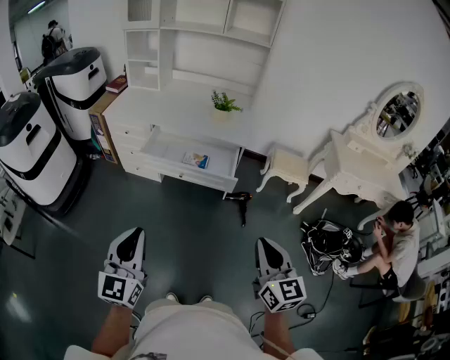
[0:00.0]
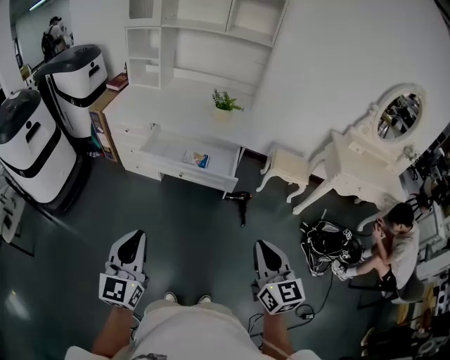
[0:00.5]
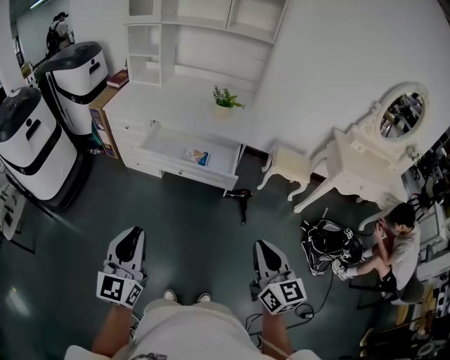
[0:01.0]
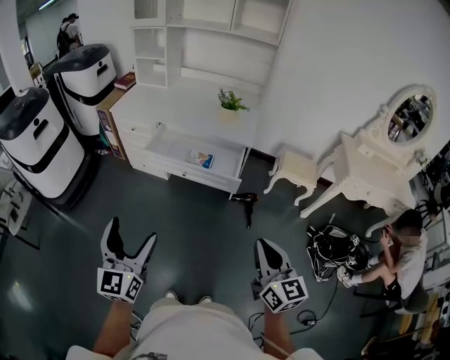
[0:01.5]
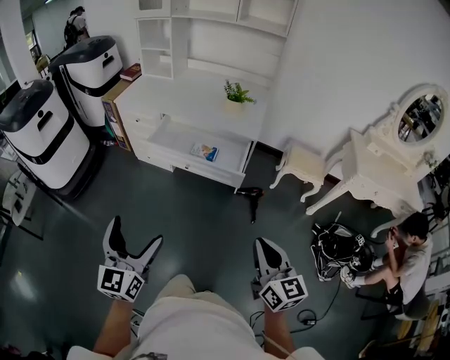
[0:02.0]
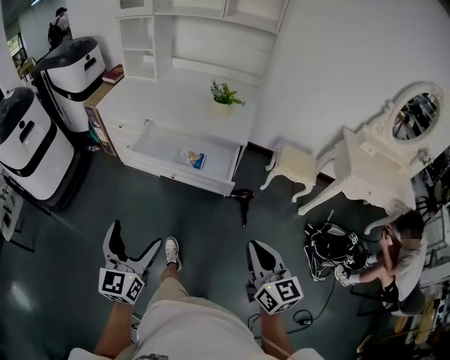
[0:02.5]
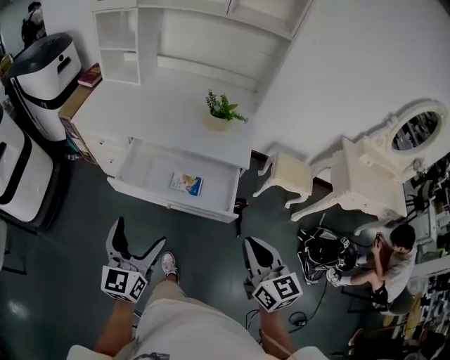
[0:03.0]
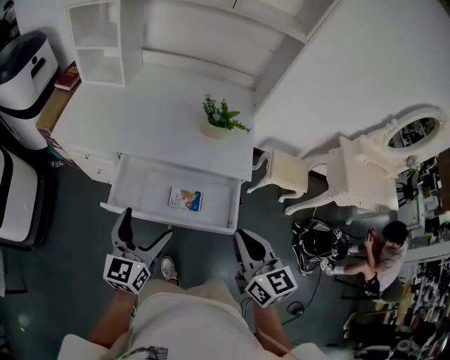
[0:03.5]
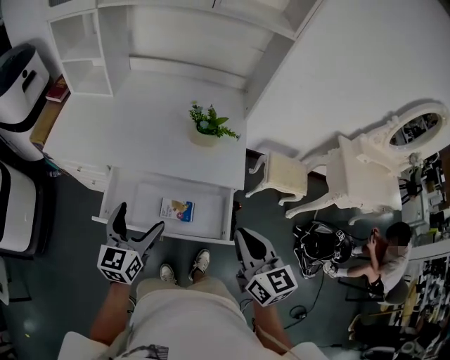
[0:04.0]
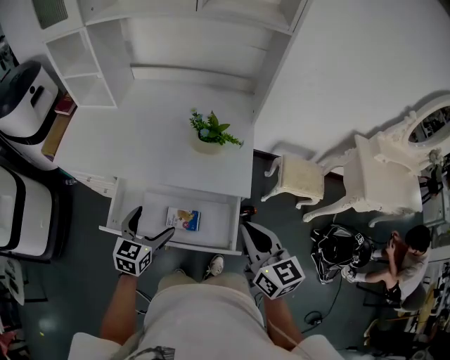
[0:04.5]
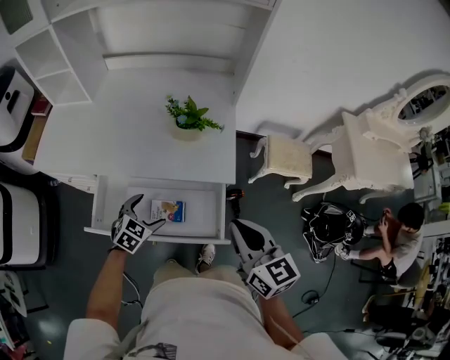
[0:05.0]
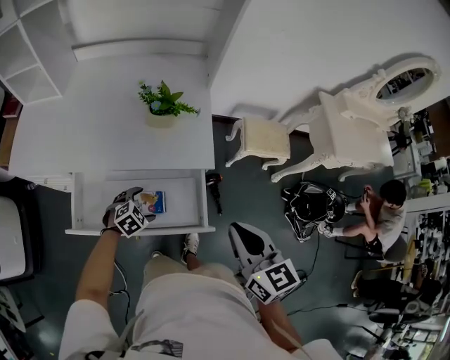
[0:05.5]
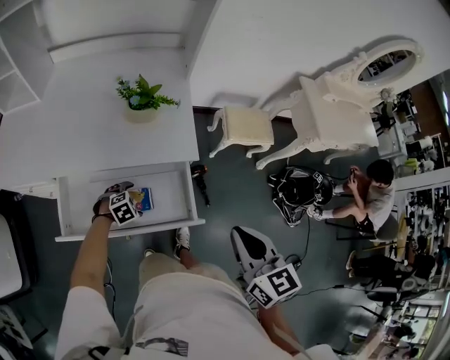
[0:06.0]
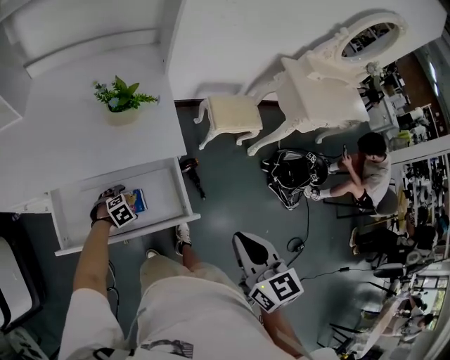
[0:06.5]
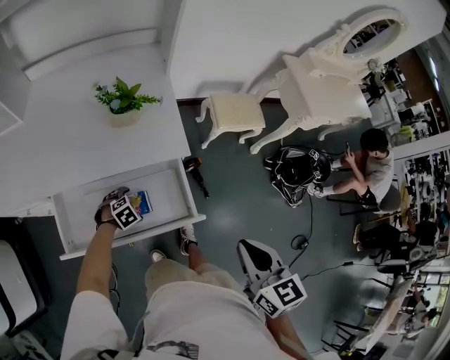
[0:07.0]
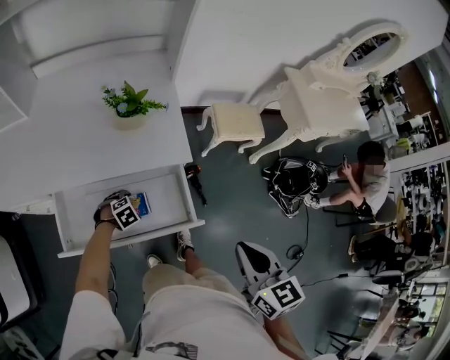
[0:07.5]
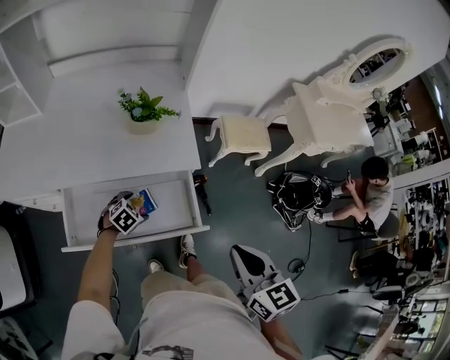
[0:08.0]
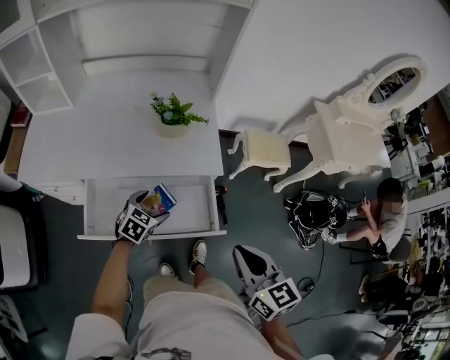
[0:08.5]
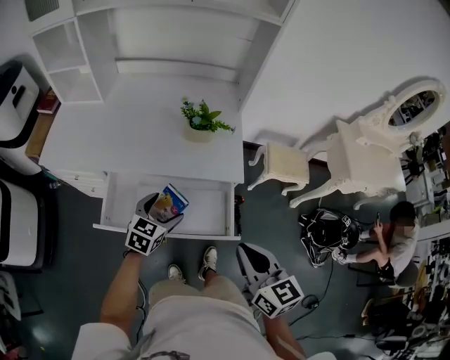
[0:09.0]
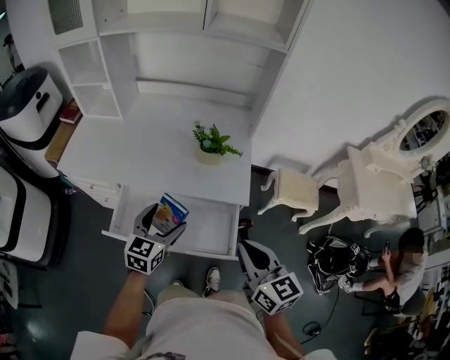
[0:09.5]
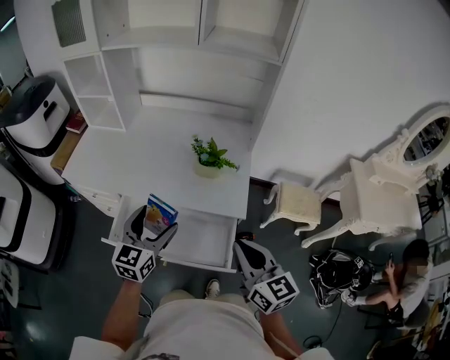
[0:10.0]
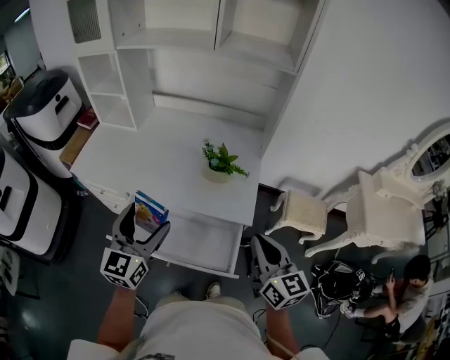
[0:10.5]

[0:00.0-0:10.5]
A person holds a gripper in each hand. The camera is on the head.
0.0 to 2.0 s: The left gripper opens. The right gripper shifts by approximately 5 cm.
2.0 to 4.0 s: The two grippers travel together, forward, some 50 cm. The left gripper changes its angle by about 20 degrees.
4.0 to 6.5 s: The left gripper shifts about 35 cm downward, and points its fingers approximately 60 degrees further downward. The right gripper changes place by approximately 15 cm, and swivels approximately 20 degrees.
6.5 to 8.5 s: The left gripper travels upward by roughly 15 cm, and changes its angle by about 40 degrees. The right gripper moves approximately 5 cm.
8.5 to 10.5 s: The left gripper heads upward, covering approximately 30 cm, and tips its fingers upward by about 40 degrees. Meanwhile the right gripper goes approximately 15 cm forward and upward.

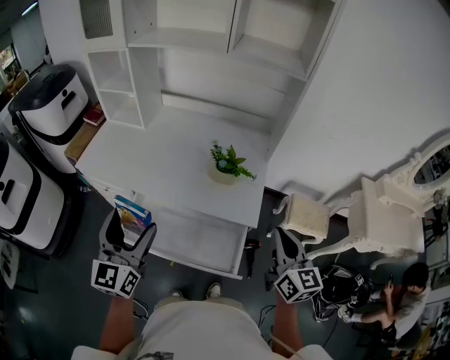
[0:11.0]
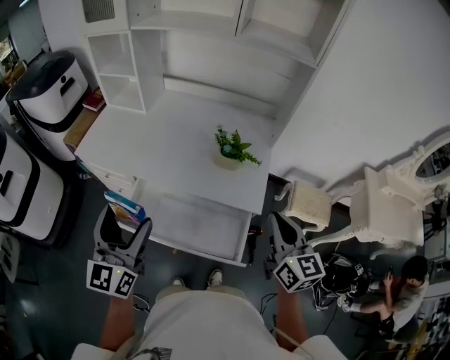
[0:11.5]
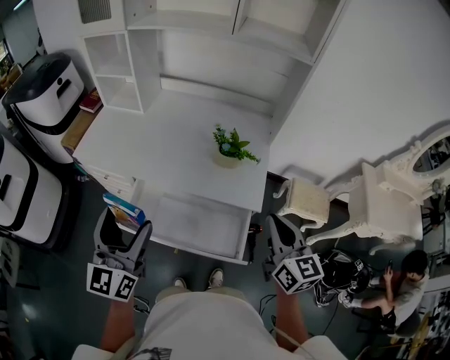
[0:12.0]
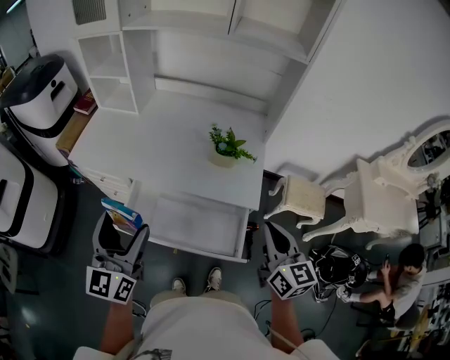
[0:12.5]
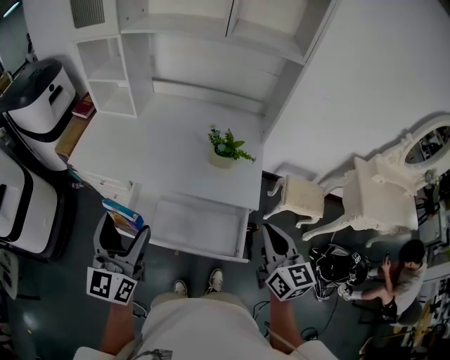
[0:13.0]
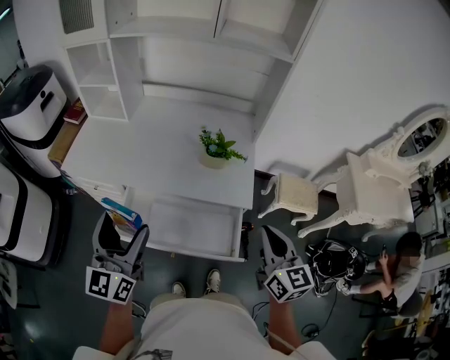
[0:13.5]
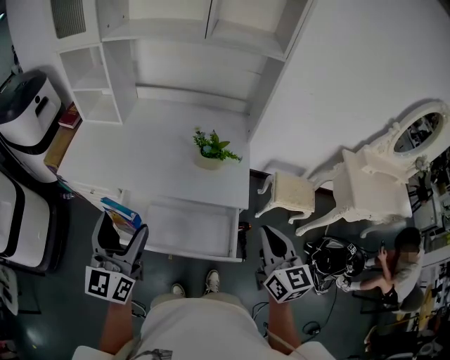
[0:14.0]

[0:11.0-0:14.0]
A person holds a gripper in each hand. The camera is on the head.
11.0 to 12.5 s: The right gripper heads to the left, covering approximately 5 cm.
12.5 to 14.0 s: The grippers make only small movements.

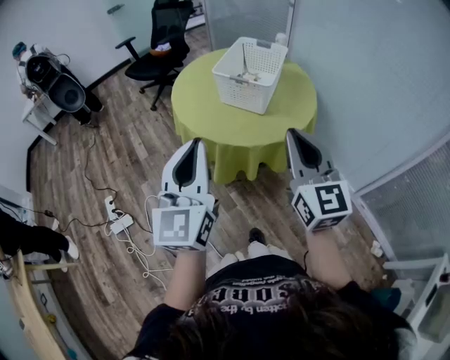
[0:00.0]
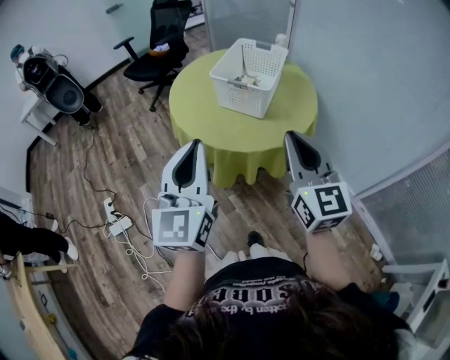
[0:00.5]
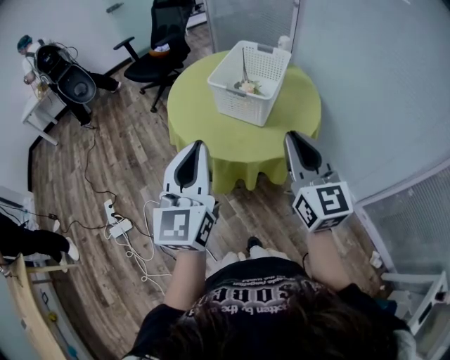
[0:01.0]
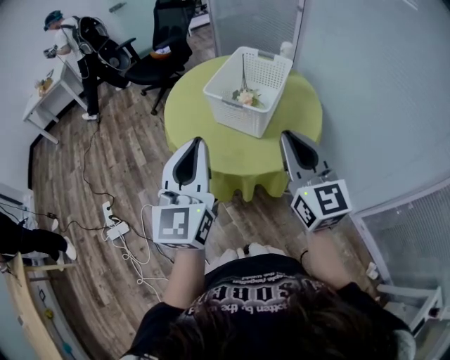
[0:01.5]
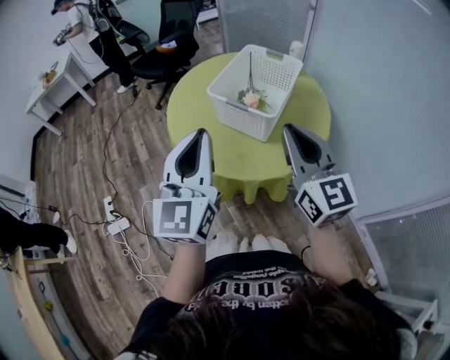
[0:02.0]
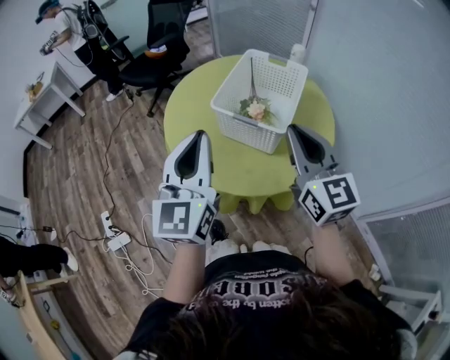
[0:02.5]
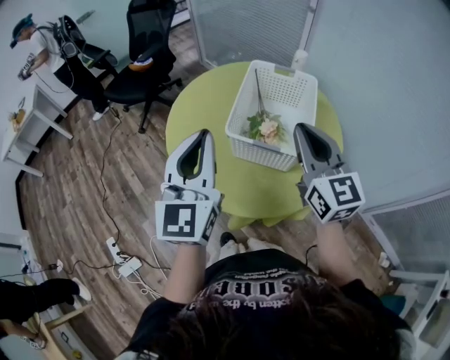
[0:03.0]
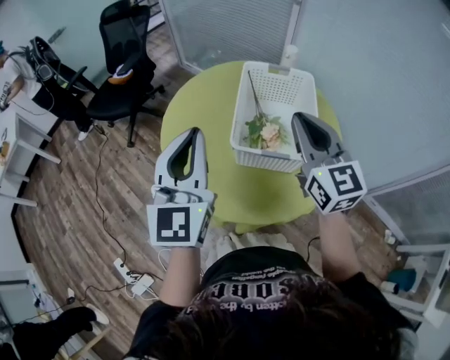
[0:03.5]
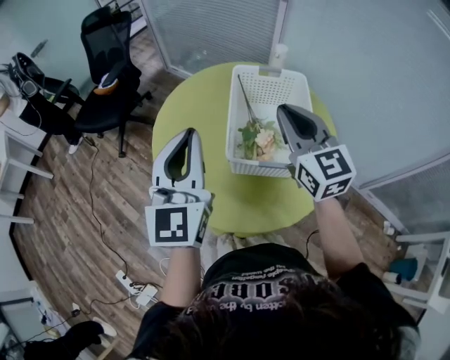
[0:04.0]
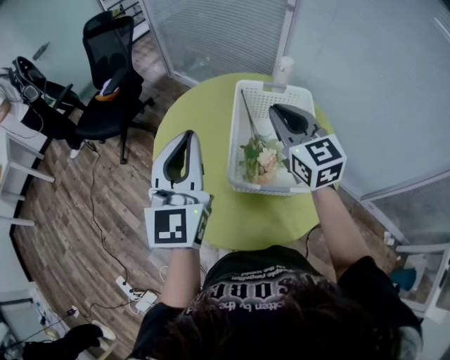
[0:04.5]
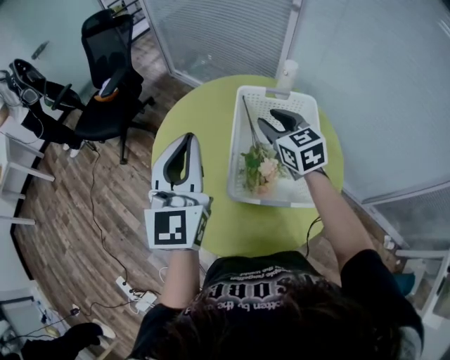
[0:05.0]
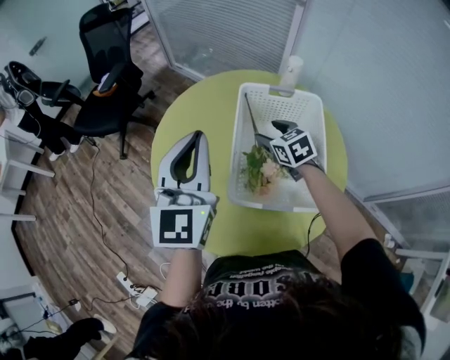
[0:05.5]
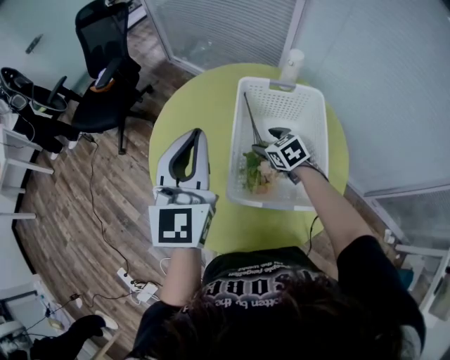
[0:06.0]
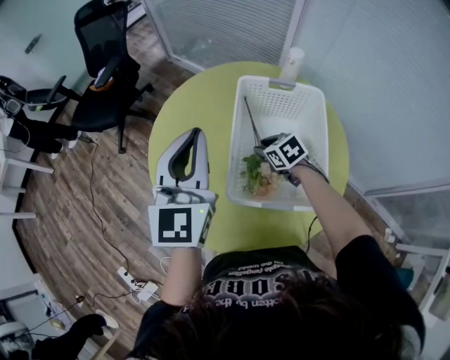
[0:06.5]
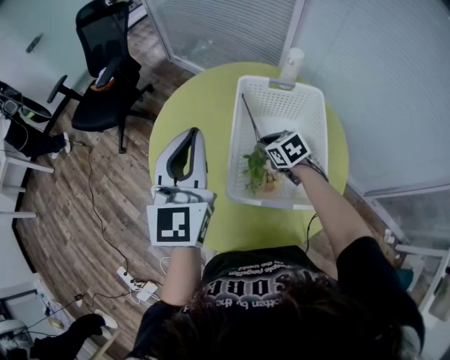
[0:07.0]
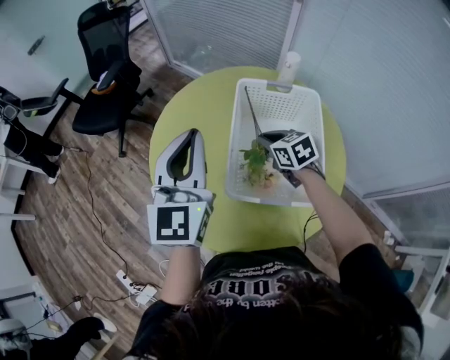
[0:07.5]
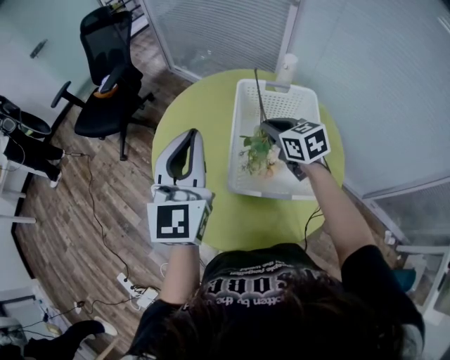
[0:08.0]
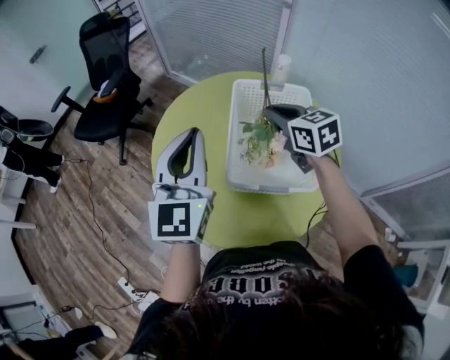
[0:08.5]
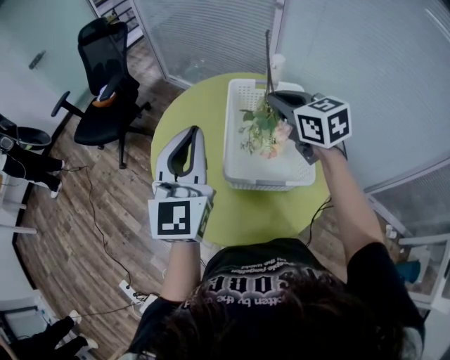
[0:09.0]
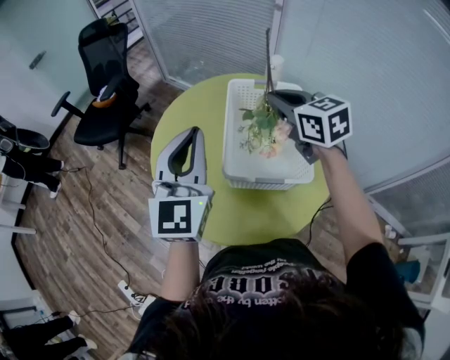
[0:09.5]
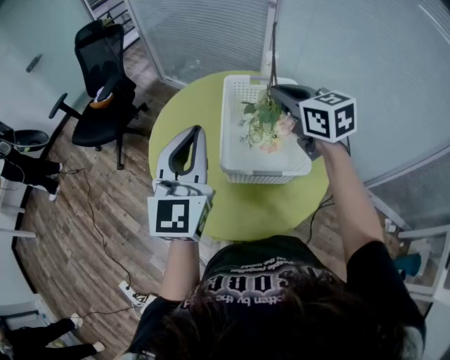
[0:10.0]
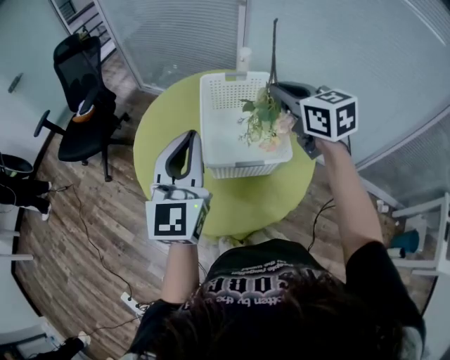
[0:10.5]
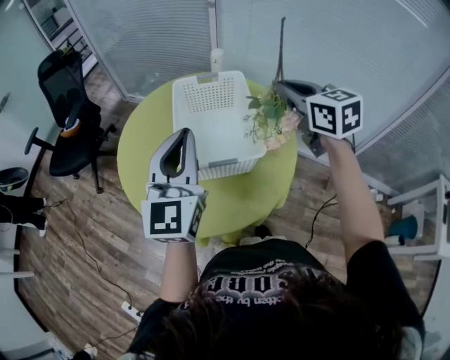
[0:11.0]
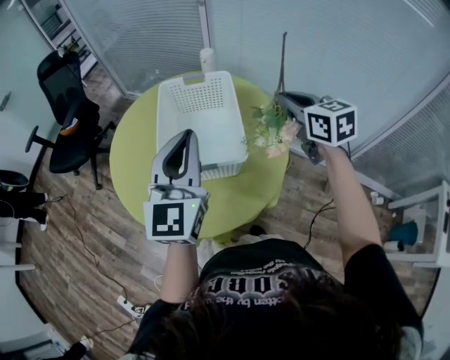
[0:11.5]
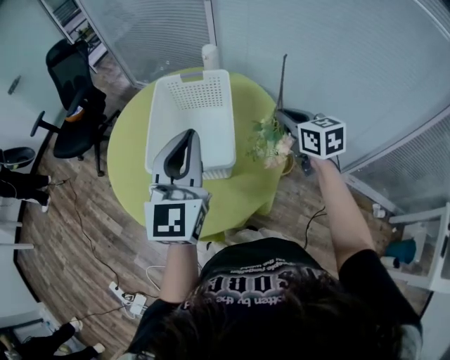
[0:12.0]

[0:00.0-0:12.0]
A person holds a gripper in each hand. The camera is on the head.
0.0 to 2.0 s: The left gripper shifts about 20 cm forward and to the right; the right gripper travels forward by about 20 cm.
2.0 to 4.0 s: The right gripper shifts some 25 cm forward, and turns by roughly 30 degrees. Meanwhile the left gripper travels forward and to the left by about 30 cm, and changes its angle by some 20 degrees.
4.0 to 6.0 s: The right gripper is displaced downward and forward by some 35 cm, tilts its fingers roughly 40 degrees downward, and opens up. The left gripper shifts about 10 cm forward.
6.0 to 8.0 s: The right gripper is displaced upward by roughly 15 cm, and closes its fingers.
8.0 to 10.0 s: The right gripper moves upward, approximately 15 cm, while the left gripper heads backward, covering approximately 5 cm.
10.0 to 12.0 s: The left gripper shifts some 20 cm to the right. Meanwhile the right gripper travels to the right and downward by roughly 30 cm.

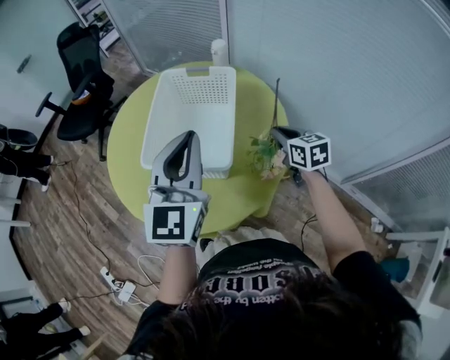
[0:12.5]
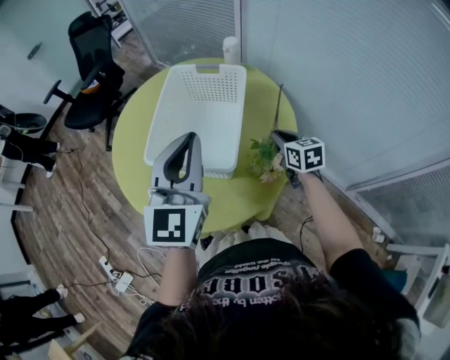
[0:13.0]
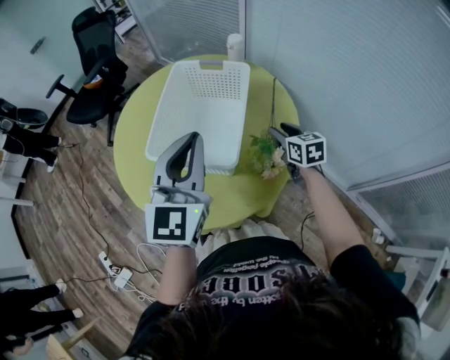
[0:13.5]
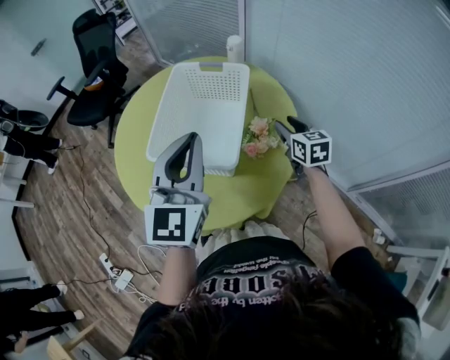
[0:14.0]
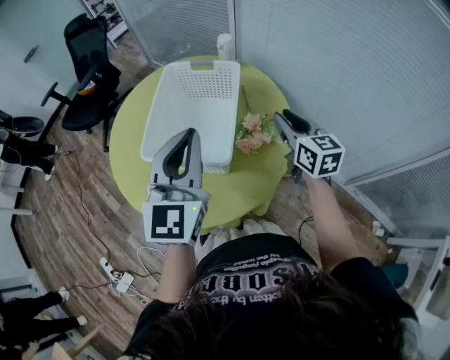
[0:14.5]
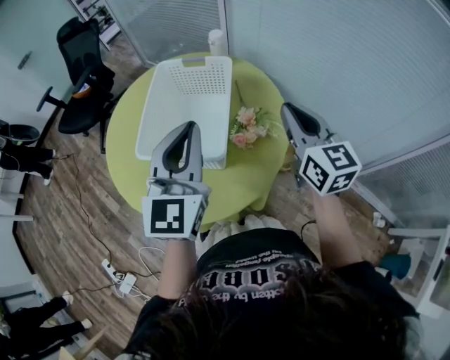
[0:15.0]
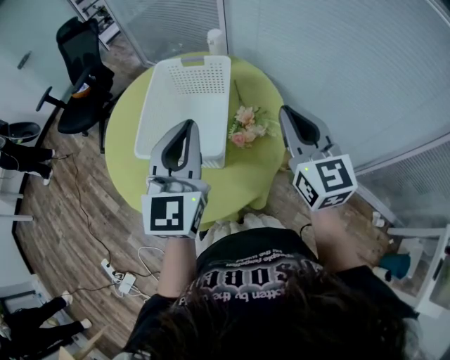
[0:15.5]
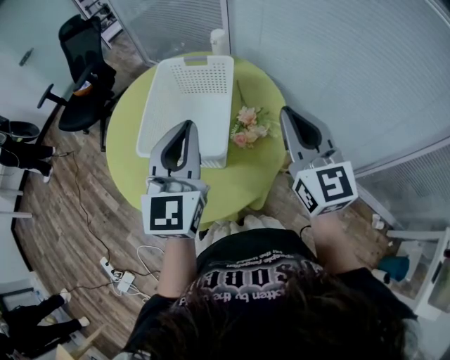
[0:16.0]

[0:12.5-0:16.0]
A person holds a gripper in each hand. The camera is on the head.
12.5 to 14.5 s: The right gripper travels upward by some 10 cm.
14.5 to 16.0 s: The right gripper shifts about 15 cm upward and backward, and changes its angle by some 20 degrees.
